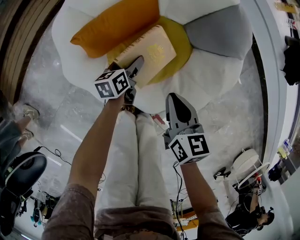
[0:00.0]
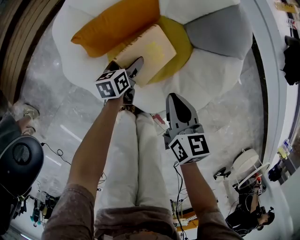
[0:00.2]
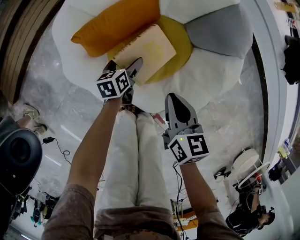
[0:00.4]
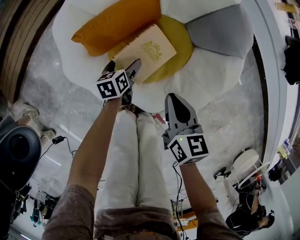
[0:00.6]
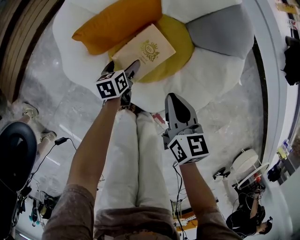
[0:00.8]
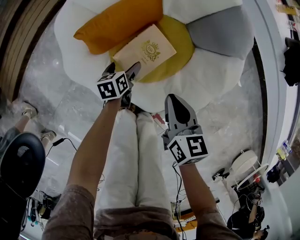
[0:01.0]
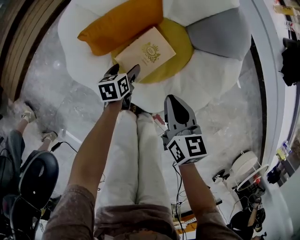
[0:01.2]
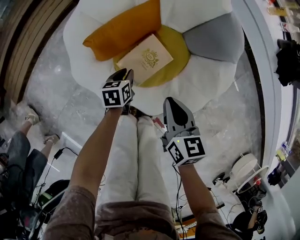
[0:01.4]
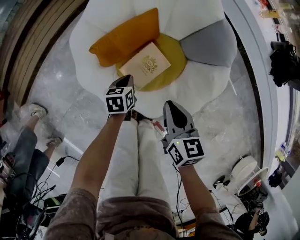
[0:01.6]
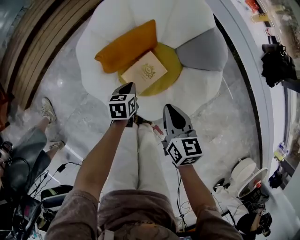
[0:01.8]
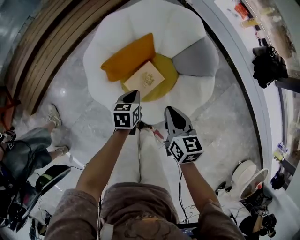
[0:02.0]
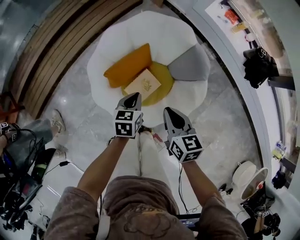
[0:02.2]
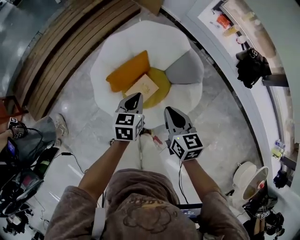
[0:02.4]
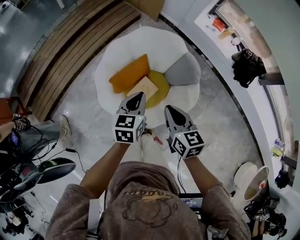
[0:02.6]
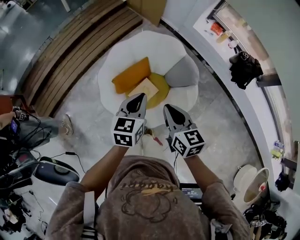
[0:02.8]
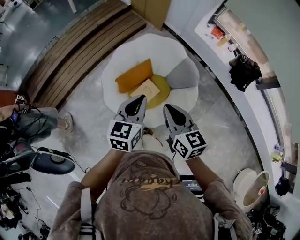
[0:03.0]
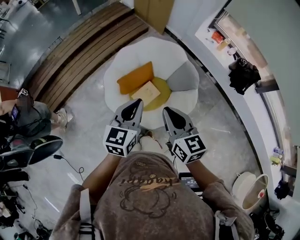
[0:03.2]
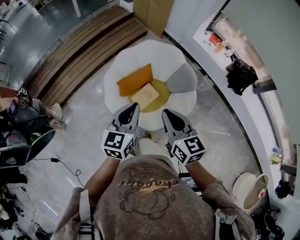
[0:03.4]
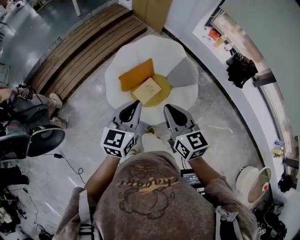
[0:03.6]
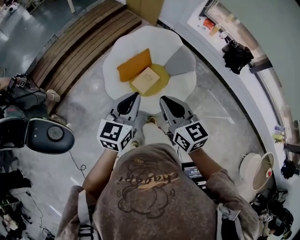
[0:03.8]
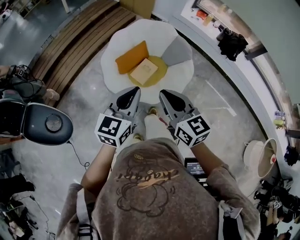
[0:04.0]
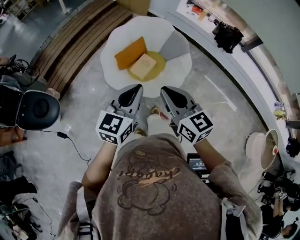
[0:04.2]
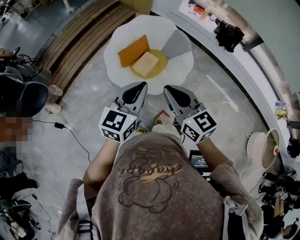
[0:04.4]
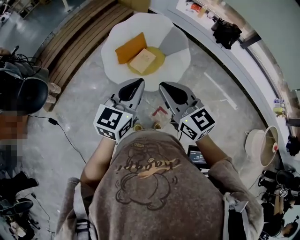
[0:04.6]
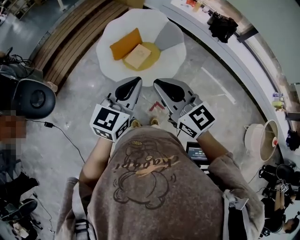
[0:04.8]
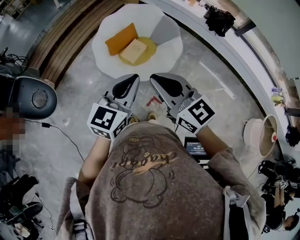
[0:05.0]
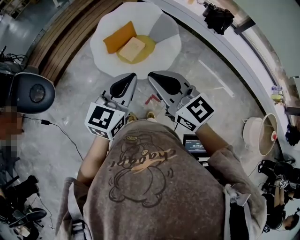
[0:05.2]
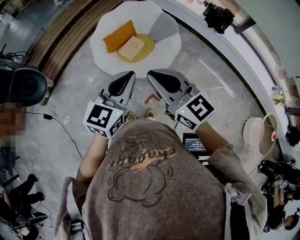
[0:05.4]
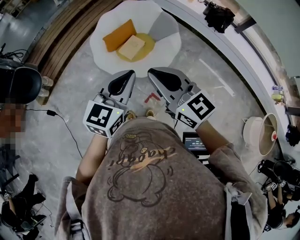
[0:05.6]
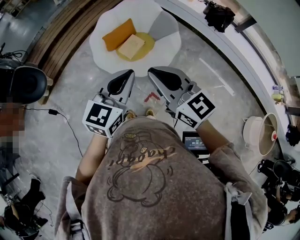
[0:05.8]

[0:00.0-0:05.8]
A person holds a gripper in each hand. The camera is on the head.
0:00.0 to 0:01.4: The left gripper shifts by some 5 cm, and closes.
0:01.4 to 0:02.8: The left gripper moves upward, roughly 50 cm, and rotates about 30 degrees; the right gripper travels upward by some 35 cm.
0:02.8 to 0:04.4: The left gripper heads backward, covering some 35 cm, and turns by some 30 degrees; the right gripper heads backward and upward, covering about 35 cm.
0:04.4 to 0:05.8: The left gripper shifts about 10 cm backward and to the right. The right gripper shifts roughly 5 cm backward.

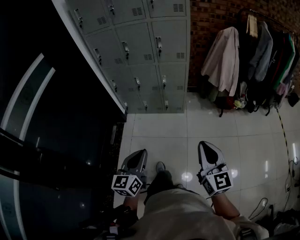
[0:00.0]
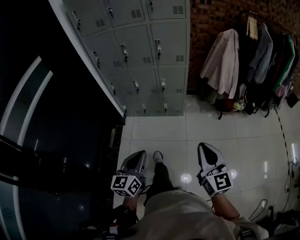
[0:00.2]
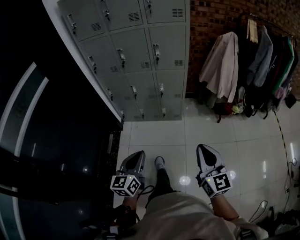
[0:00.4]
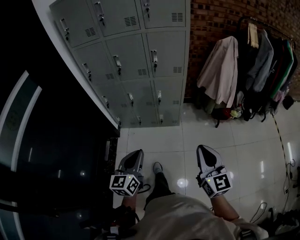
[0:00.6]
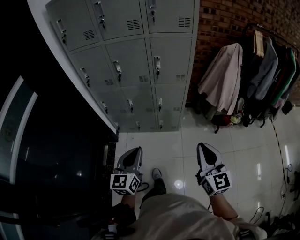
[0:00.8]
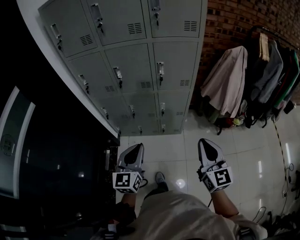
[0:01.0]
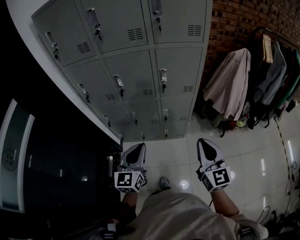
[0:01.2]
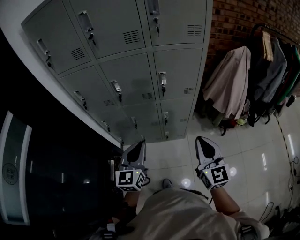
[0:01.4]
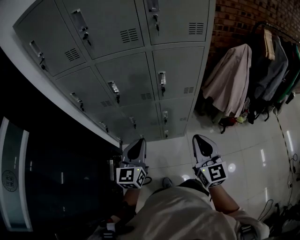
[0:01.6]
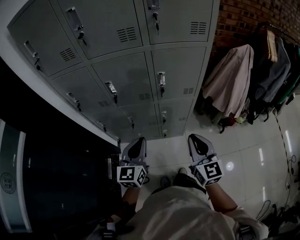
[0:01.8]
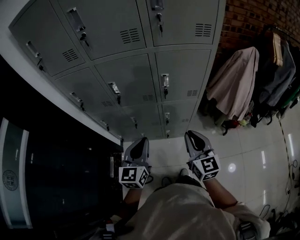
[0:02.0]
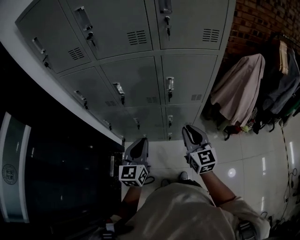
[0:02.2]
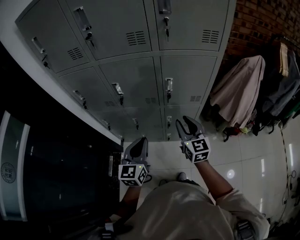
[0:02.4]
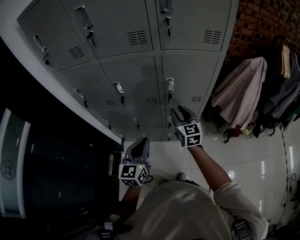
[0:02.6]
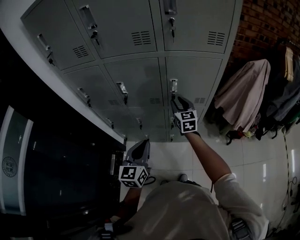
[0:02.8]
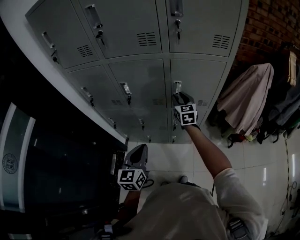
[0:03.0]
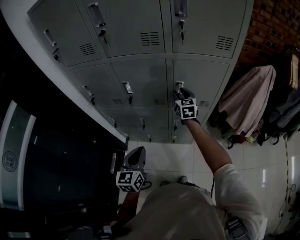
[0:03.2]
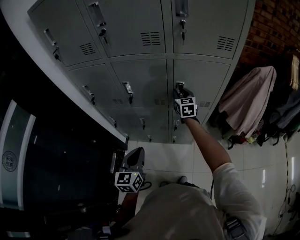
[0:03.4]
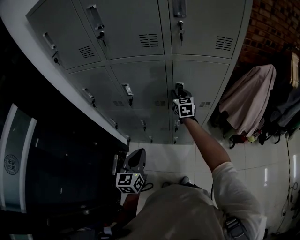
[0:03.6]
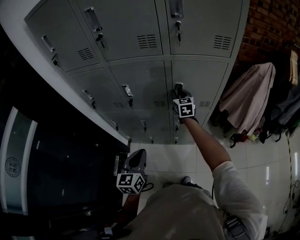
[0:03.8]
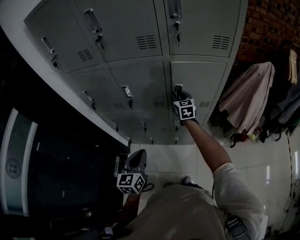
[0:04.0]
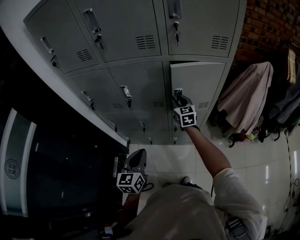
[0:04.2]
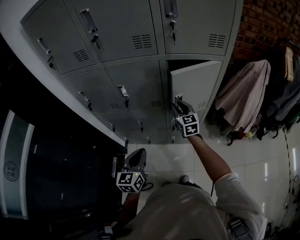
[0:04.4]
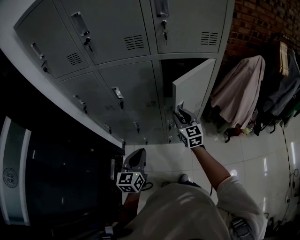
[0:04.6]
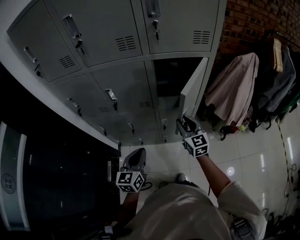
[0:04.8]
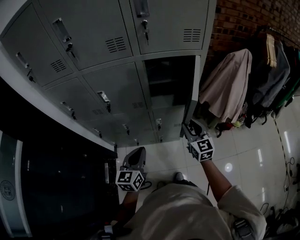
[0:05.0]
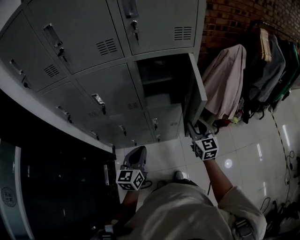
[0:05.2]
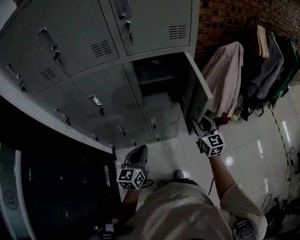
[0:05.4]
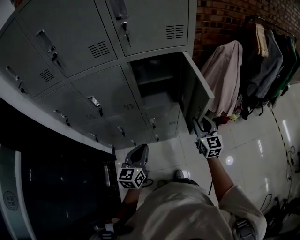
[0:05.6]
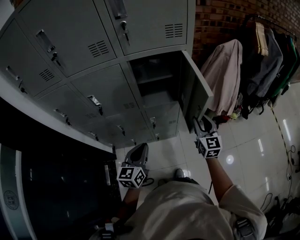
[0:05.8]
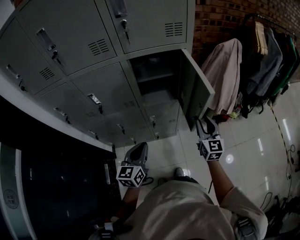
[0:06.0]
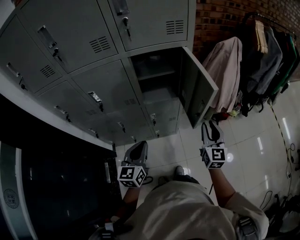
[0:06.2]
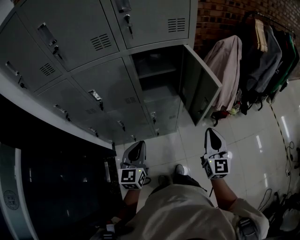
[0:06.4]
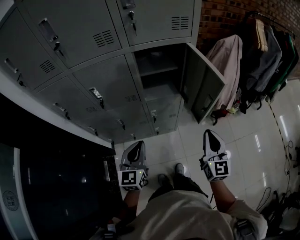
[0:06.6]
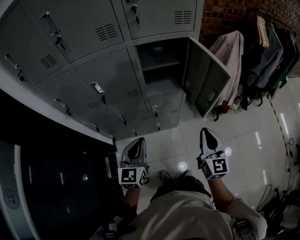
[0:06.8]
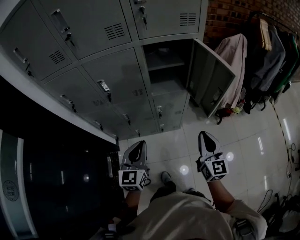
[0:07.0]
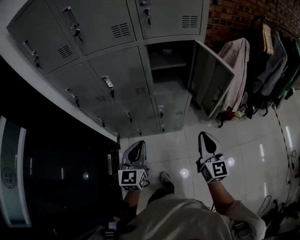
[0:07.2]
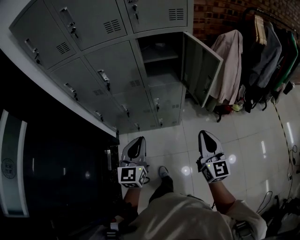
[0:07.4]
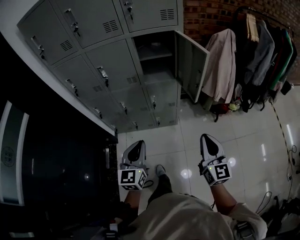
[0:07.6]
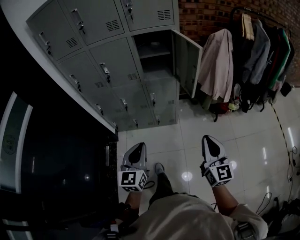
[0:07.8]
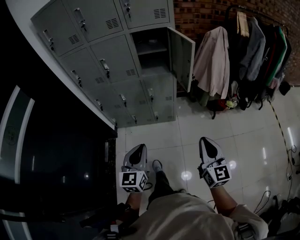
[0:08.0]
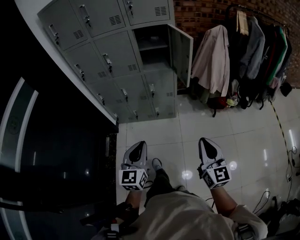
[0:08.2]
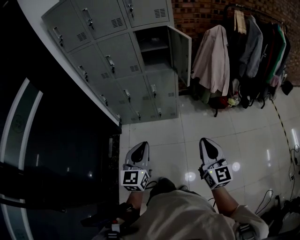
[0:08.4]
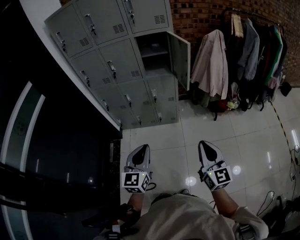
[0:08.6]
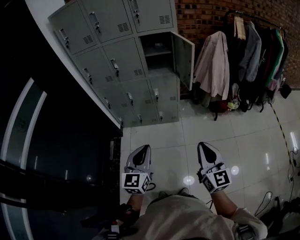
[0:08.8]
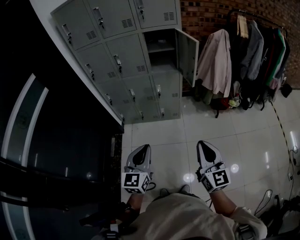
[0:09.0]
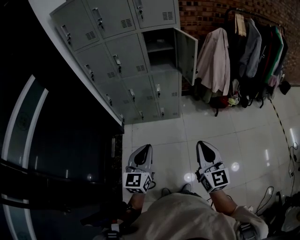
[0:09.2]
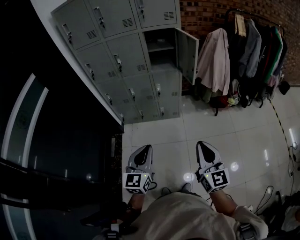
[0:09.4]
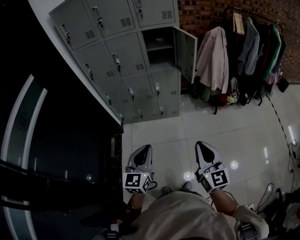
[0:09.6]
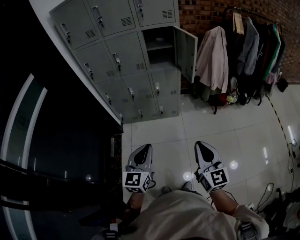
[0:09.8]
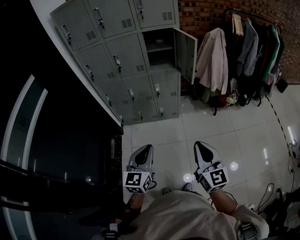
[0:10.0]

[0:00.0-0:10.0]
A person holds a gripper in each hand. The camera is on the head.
0:00.0 to 0:01.4: The two grippers travel together, forward, some 40 cm.
0:01.4 to 0:02.8: The right gripper moves forward and downward, approximately 40 cm, and opens up, while the left gripper is displaced forward and downward by some 10 cm.
0:02.8 to 0:04.2: The left gripper shifts by approximately 5 cm, while the right gripper goes approximately 5 cm forward.
0:04.2 to 0:05.8: The right gripper moves to the right and backward, some 30 cm, and rotates roughly 20 degrees; the left gripper travels to the right by approximately 15 cm.
0:05.8 to 0:07.2: The right gripper is displaced backward by about 20 cm, and closes its fingers. Meanwhile the left gripper goes about 10 cm backward and upward.
0:07.2 to 0:08.6: The two grippers go some 40 cm backward.
0:08.6 to 0:10.0: The right gripper travels to the left and backward by roughly 10 cm; the left gripper shifts about 5 cm to the left.

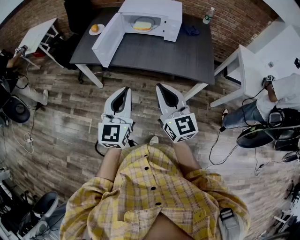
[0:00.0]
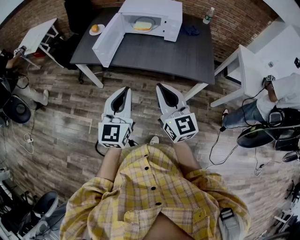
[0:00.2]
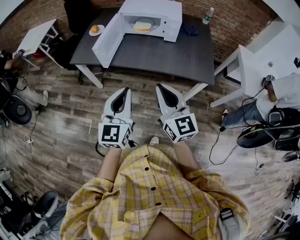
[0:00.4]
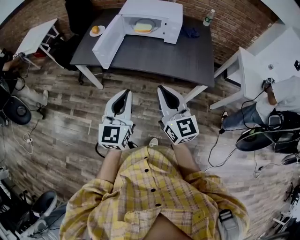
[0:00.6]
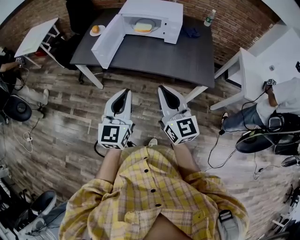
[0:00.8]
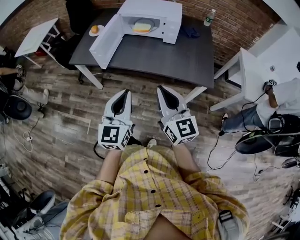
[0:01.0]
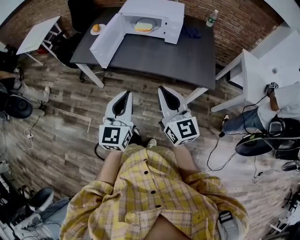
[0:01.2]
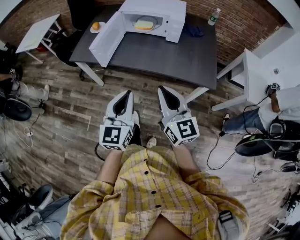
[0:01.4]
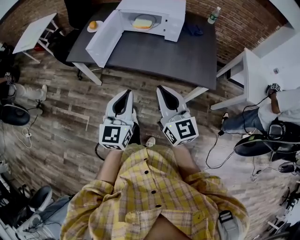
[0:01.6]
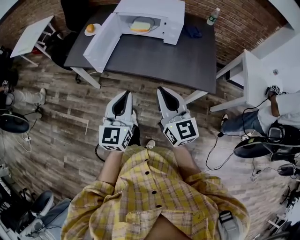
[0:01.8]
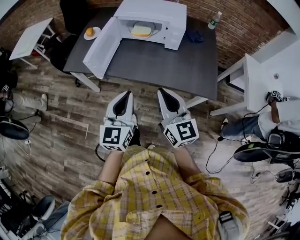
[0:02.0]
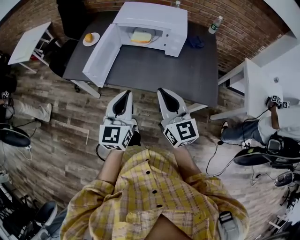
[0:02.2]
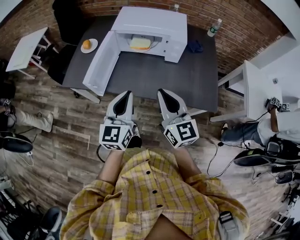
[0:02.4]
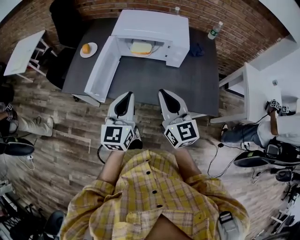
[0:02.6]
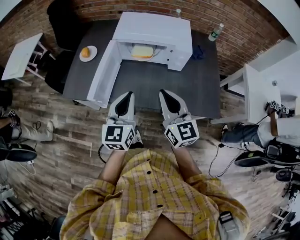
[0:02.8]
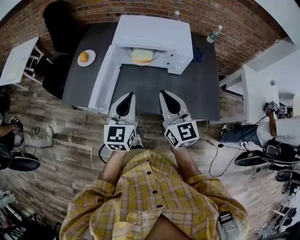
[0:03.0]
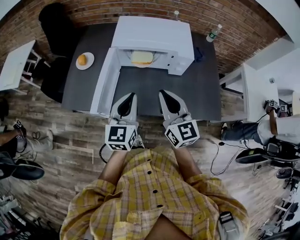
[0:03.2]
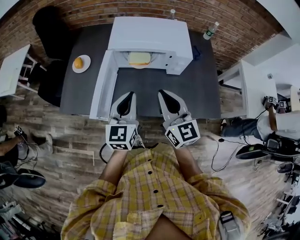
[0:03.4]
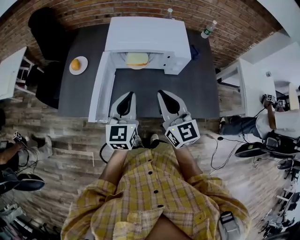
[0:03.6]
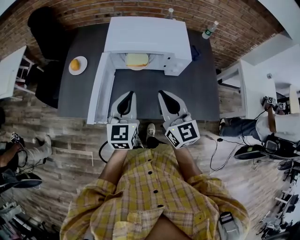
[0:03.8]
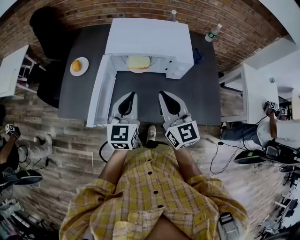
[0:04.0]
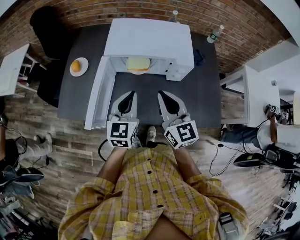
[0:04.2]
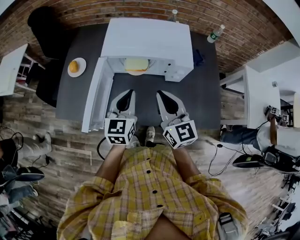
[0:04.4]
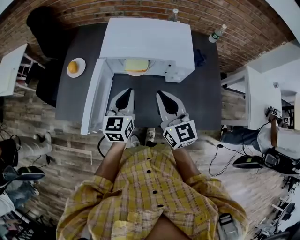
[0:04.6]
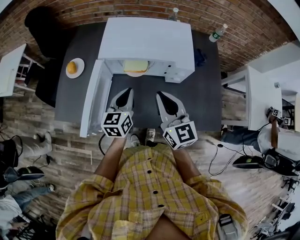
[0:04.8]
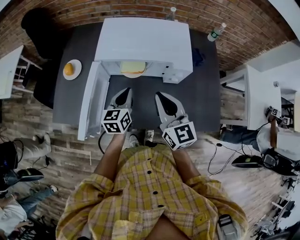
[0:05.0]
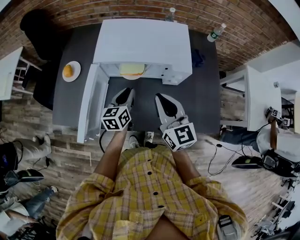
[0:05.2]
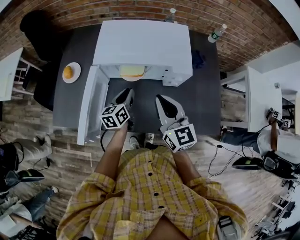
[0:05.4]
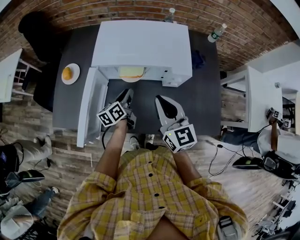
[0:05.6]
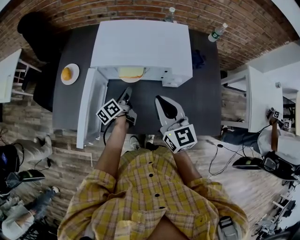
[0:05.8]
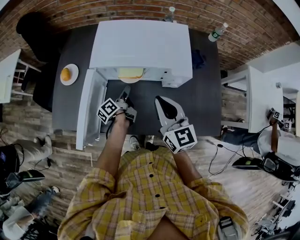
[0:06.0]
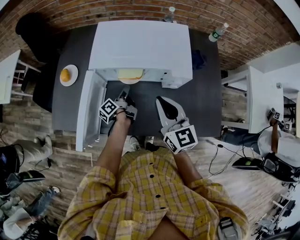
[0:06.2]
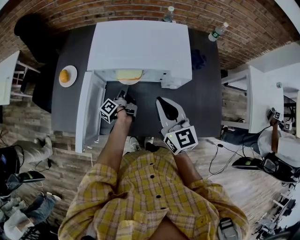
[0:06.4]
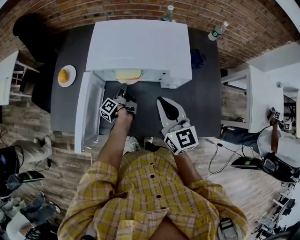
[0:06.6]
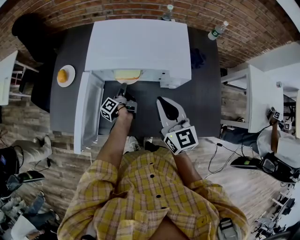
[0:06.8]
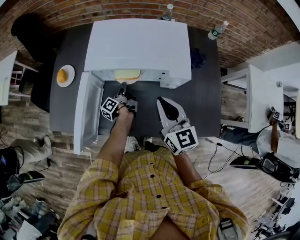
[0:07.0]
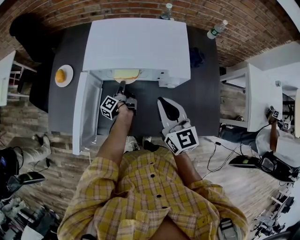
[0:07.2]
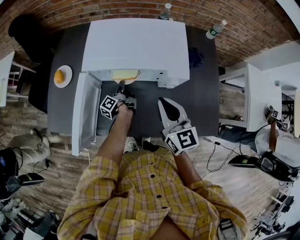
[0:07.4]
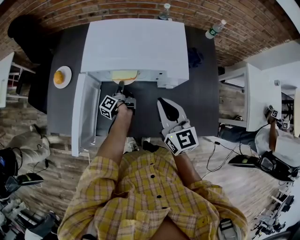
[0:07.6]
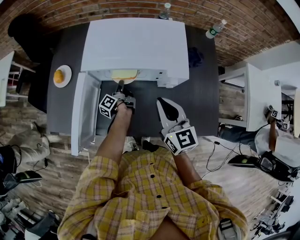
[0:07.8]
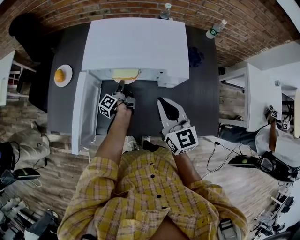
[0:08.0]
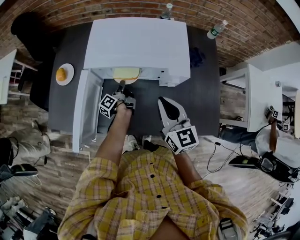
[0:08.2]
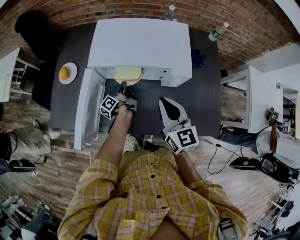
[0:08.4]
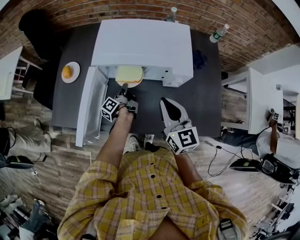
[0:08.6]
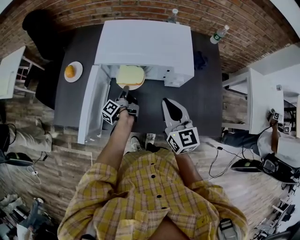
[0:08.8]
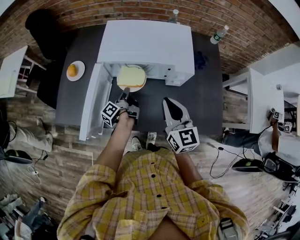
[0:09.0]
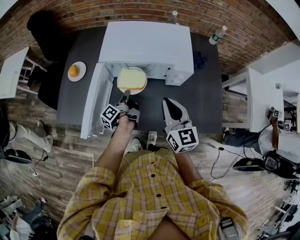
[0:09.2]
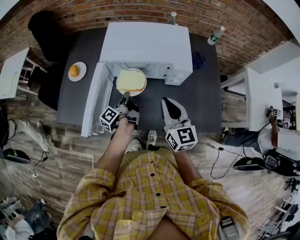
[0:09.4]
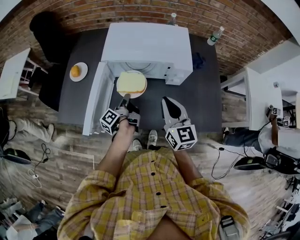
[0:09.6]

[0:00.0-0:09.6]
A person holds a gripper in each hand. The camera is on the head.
0:00.0 to 0:01.6: The left gripper ends up some 5 cm from where it was; the right gripper changes place by roughly 5 cm.
0:01.6 to 0:03.2: Both grippers move forward, roughly 30 cm.
0:03.2 to 0:04.8: The right gripper travels forward by about 10 cm; the left gripper moves forward and downward, approximately 15 cm.
0:04.8 to 0:06.4: The right gripper moves some 5 cm, while the left gripper is displaced downward and forward by approximately 20 cm, rolls counterclockwise, seen from behind, by roughly 70 degrees, and opens up.
0:06.4 to 0:08.0: The left gripper closes its fingers.
0:08.0 to 0:09.6: The left gripper goes roughly 15 cm backward and upward. The right gripper shifts some 5 cm backward.
